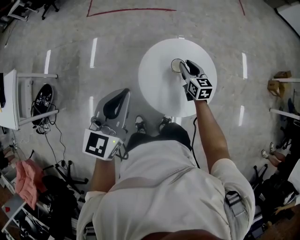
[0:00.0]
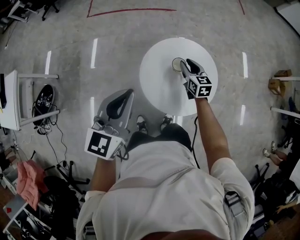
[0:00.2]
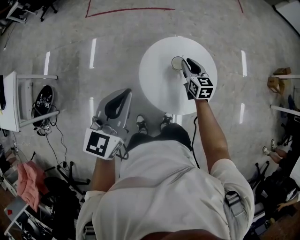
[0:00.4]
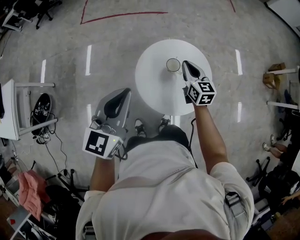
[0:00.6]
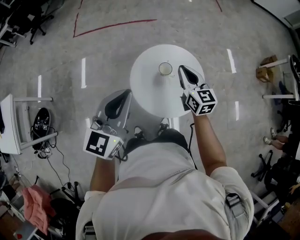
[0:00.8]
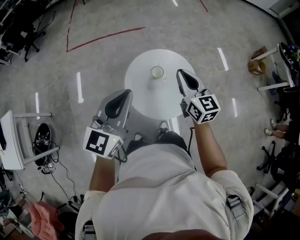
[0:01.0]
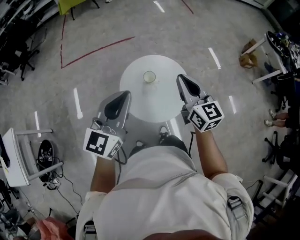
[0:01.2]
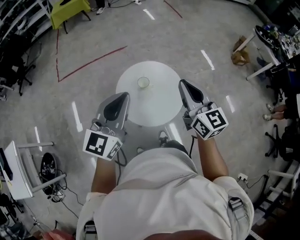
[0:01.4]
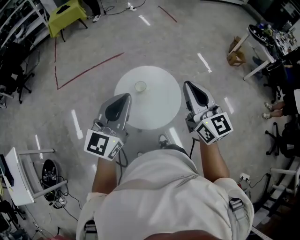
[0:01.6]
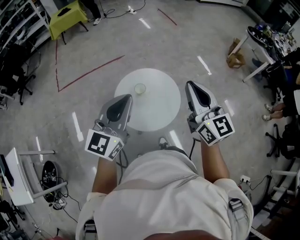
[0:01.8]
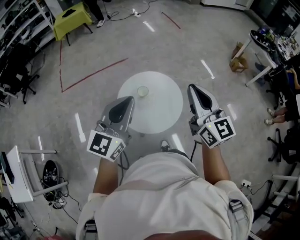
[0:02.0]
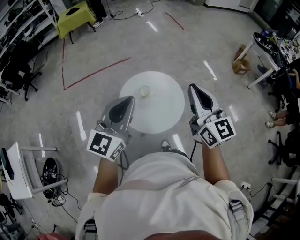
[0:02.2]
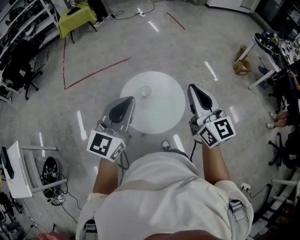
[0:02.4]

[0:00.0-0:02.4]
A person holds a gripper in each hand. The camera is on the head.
0:00.0 to 0:01.2: The right gripper heads upward and backward, covering approximately 35 cm, turns by approximately 30 degrees, and closes up; the left gripper is displaced upward by some 10 cm, and rotates approximately 30 degrees.
0:01.2 to 0:02.4: The left gripper goes approximately 10 cm to the right and upward; the right gripper travels upward, to the right and backward by approximately 15 cm.

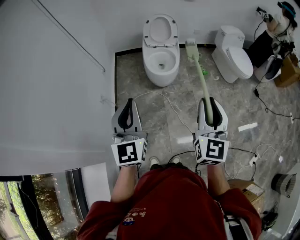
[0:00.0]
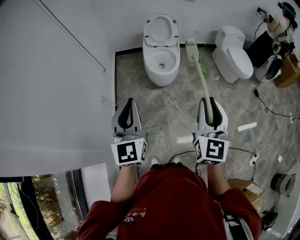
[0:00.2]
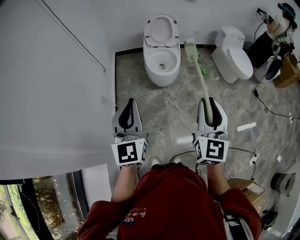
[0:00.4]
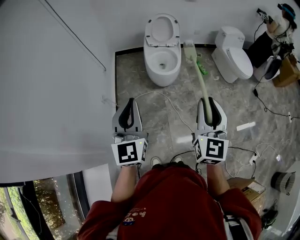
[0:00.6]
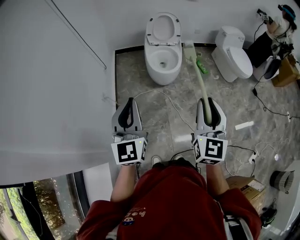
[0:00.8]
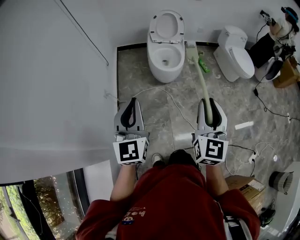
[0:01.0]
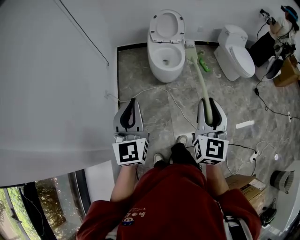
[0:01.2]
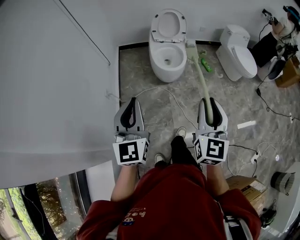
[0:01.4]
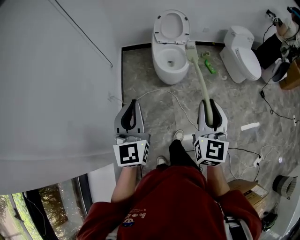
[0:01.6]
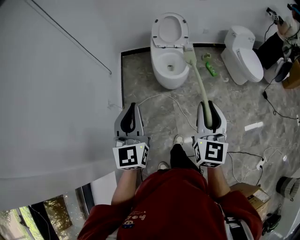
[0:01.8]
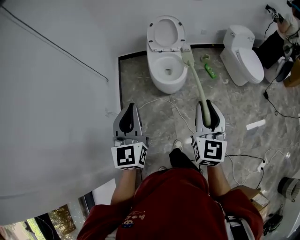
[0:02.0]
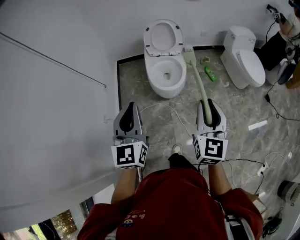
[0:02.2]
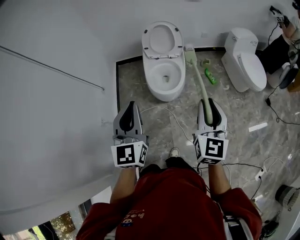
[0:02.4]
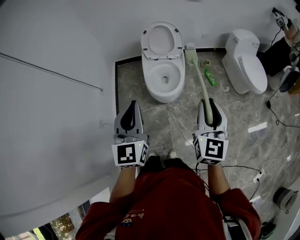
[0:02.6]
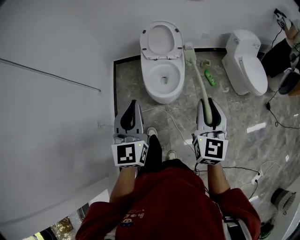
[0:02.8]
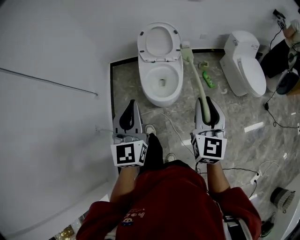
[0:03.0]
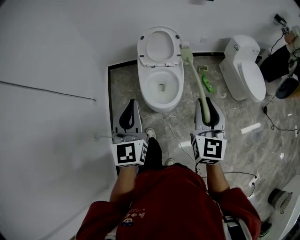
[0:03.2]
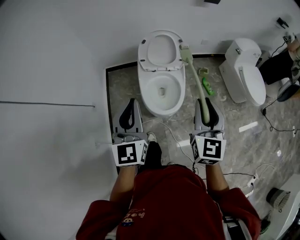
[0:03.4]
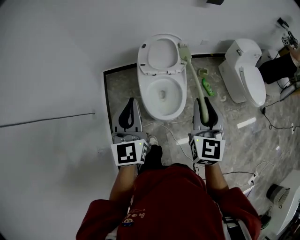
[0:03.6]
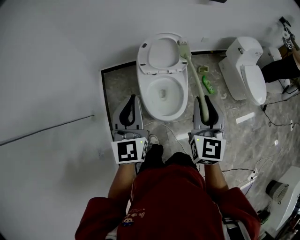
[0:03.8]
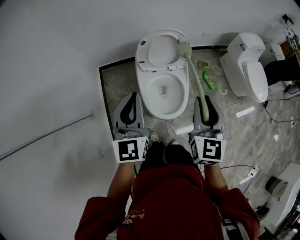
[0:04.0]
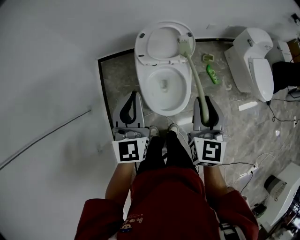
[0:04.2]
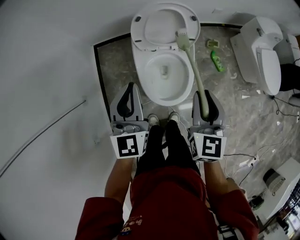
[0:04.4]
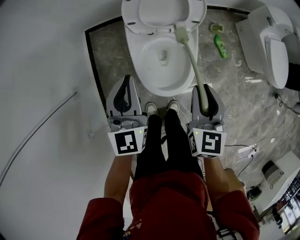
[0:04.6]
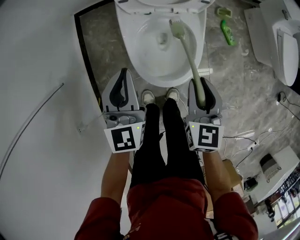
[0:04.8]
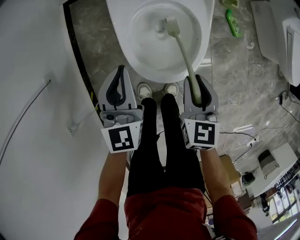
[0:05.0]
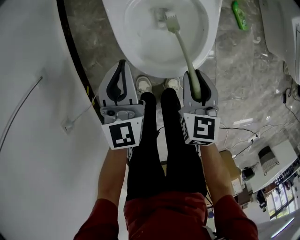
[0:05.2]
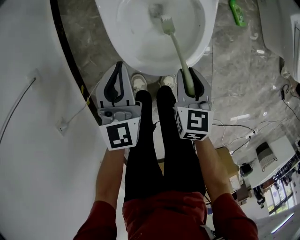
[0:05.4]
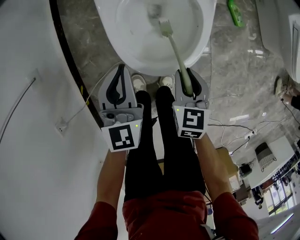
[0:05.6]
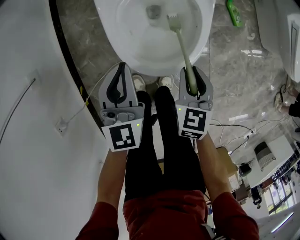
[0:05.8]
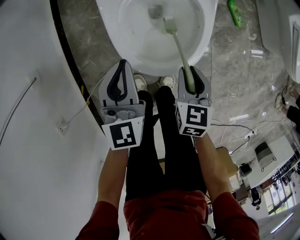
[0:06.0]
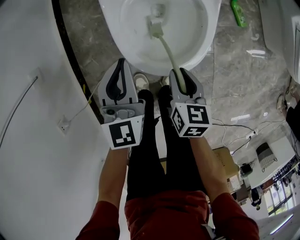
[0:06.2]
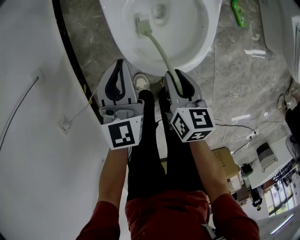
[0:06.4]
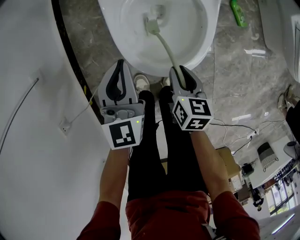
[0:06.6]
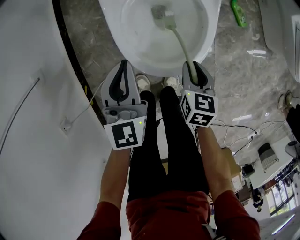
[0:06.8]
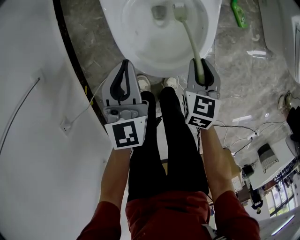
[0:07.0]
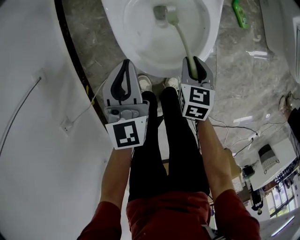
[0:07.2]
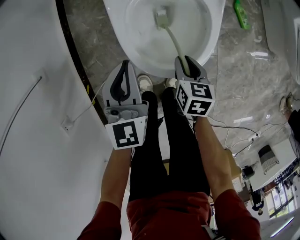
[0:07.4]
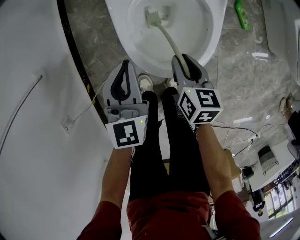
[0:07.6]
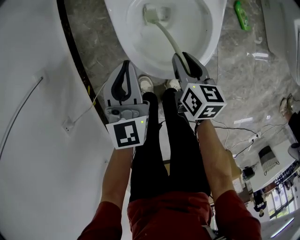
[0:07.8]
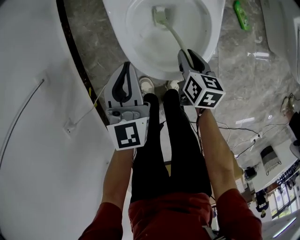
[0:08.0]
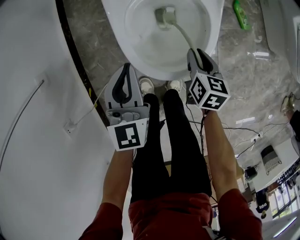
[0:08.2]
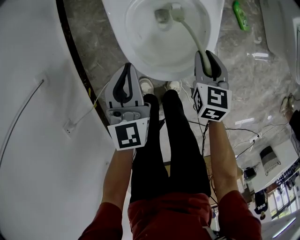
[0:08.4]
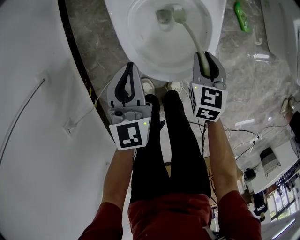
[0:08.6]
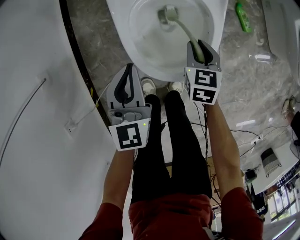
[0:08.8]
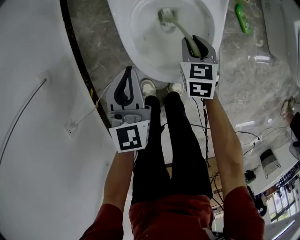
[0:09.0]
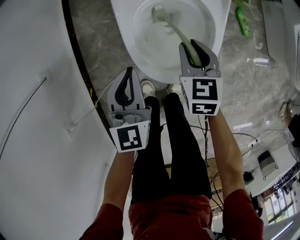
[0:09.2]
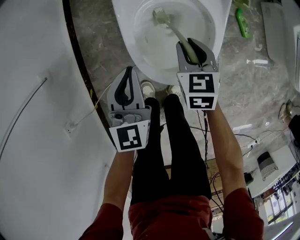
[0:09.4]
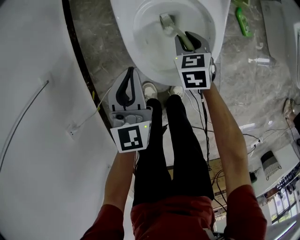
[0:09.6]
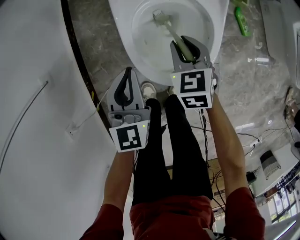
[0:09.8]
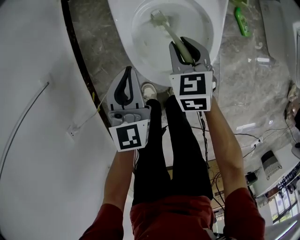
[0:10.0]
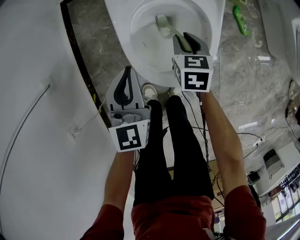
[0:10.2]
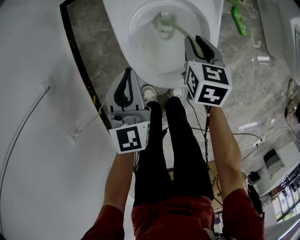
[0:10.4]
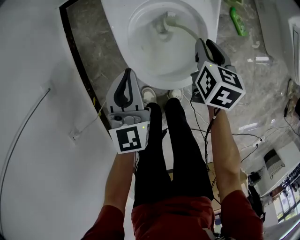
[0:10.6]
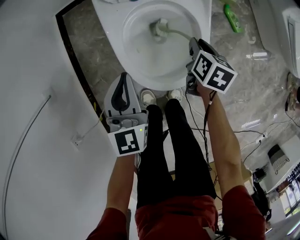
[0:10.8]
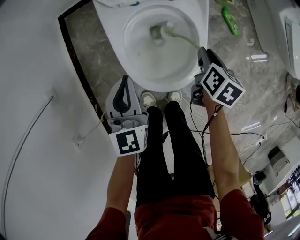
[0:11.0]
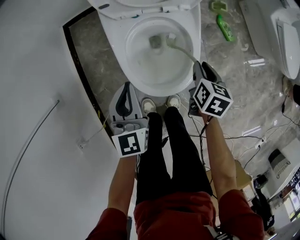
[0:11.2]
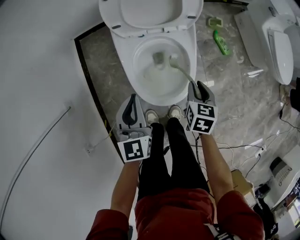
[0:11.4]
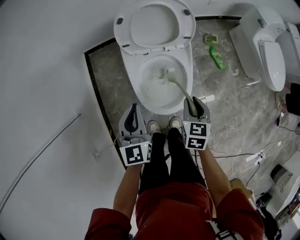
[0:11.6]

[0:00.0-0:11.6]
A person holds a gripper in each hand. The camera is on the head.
0:00.0 to 0:01.4: Both grippers move to the left, roughly 10 cm.
0:01.4 to 0:02.8: The two grippers go roughly 30 cm forward.
0:02.8 to 0:04.4: The right gripper travels forward and downward by about 35 cm, while the left gripper moves forward, some 35 cm.
0:04.4 to 0:05.8: Both grippers travel together downward, roughly 35 cm. The right gripper turns by about 30 degrees.
0:05.8 to 0:07.2: The right gripper heads downward, covering roughly 5 cm, and goes to the left and returns, approximately 5 cm each way.
0:07.2 to 0:08.8: The right gripper heads forward, covering about 5 cm, and reaches approximately 5 cm to the left, then returns.
0:10.2 to 0:11.6: The right gripper goes up and down, approximately 20 cm each way, reversing 2 times; the left gripper goes roughly 15 cm upward.

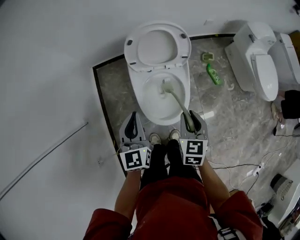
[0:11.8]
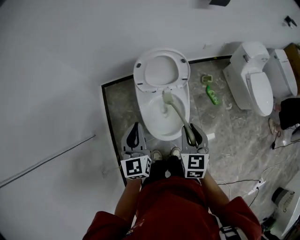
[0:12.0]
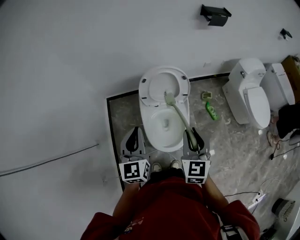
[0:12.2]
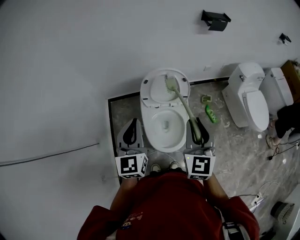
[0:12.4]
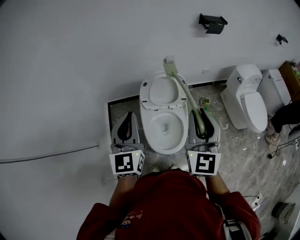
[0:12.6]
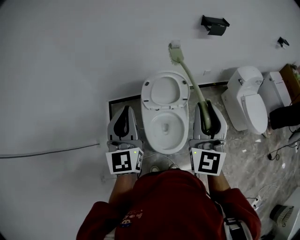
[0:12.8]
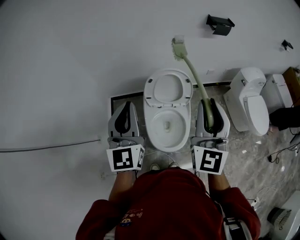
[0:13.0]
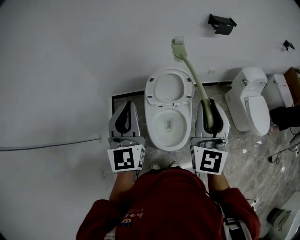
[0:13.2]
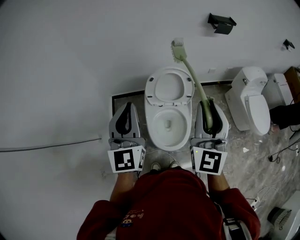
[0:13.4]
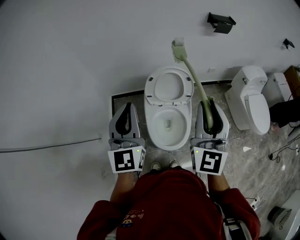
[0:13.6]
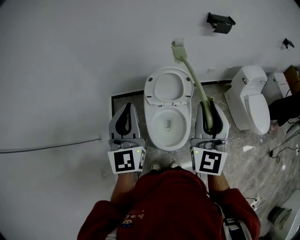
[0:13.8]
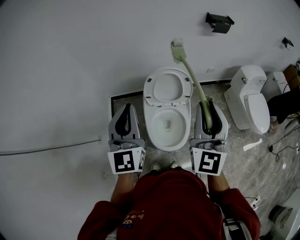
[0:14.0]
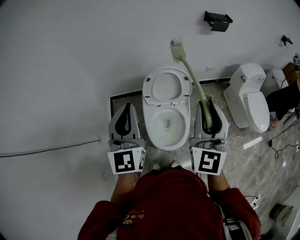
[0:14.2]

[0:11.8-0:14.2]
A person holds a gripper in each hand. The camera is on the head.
0:11.8 to 0:13.0: Both grippers move upward, some 35 cm. The right gripper tilts its fingers roughly 50 degrees upward. The left gripper turns by some 20 degrees.
0:13.0 to 0:14.2: The grippers make only small movements.

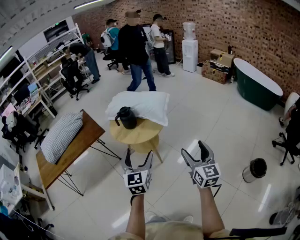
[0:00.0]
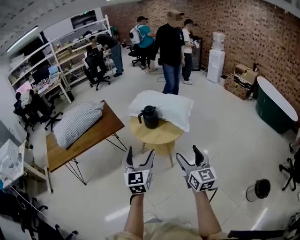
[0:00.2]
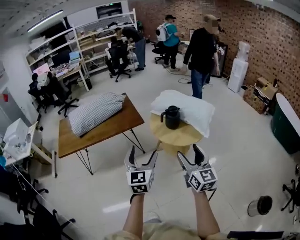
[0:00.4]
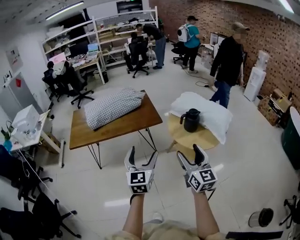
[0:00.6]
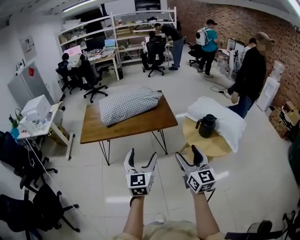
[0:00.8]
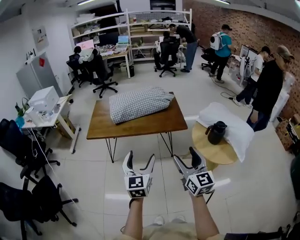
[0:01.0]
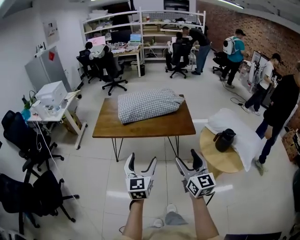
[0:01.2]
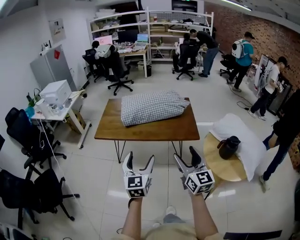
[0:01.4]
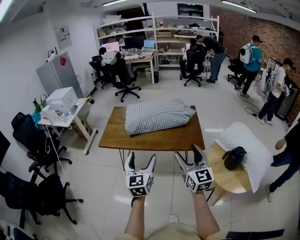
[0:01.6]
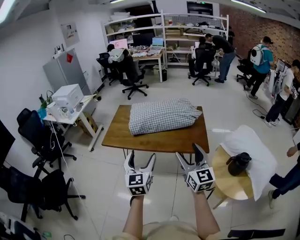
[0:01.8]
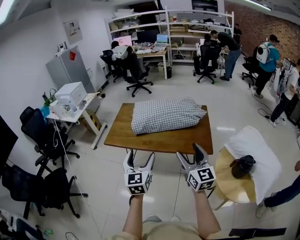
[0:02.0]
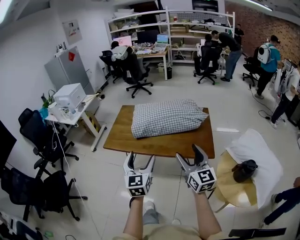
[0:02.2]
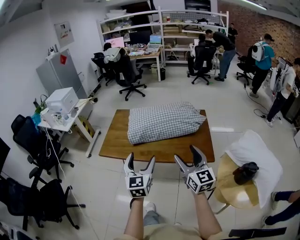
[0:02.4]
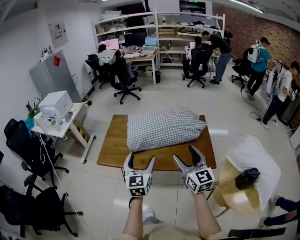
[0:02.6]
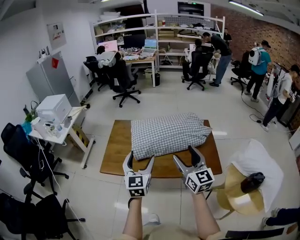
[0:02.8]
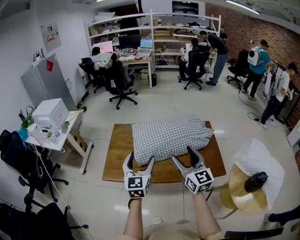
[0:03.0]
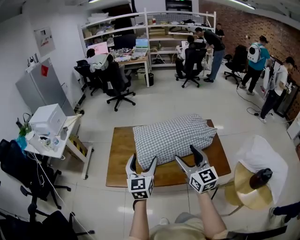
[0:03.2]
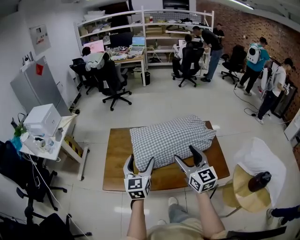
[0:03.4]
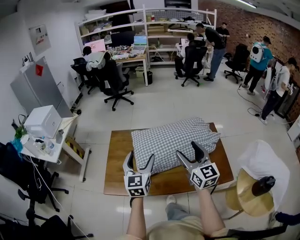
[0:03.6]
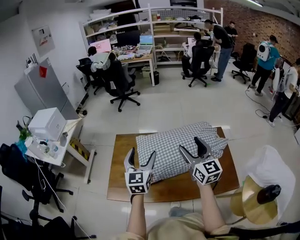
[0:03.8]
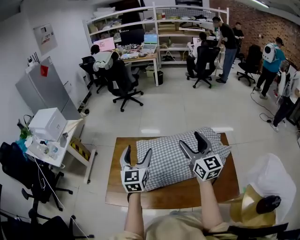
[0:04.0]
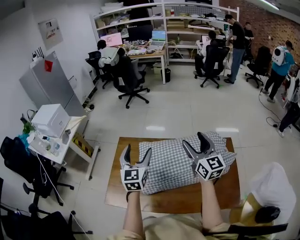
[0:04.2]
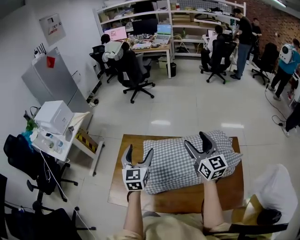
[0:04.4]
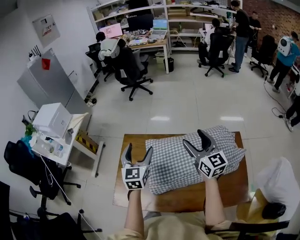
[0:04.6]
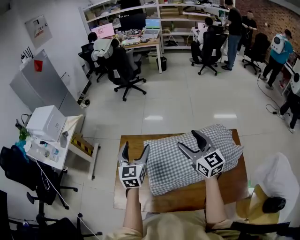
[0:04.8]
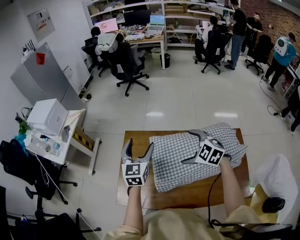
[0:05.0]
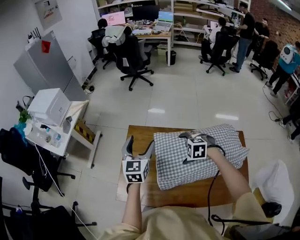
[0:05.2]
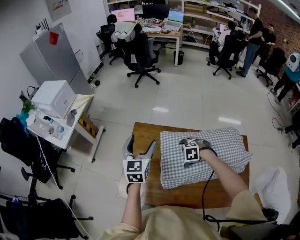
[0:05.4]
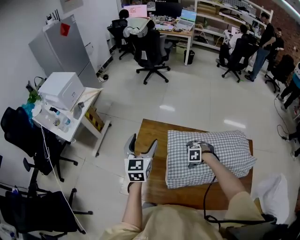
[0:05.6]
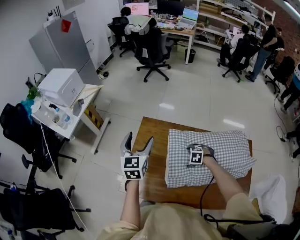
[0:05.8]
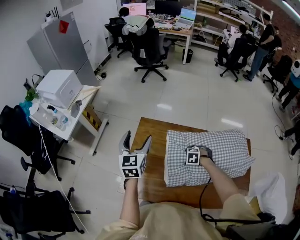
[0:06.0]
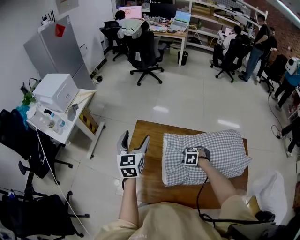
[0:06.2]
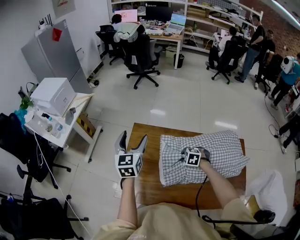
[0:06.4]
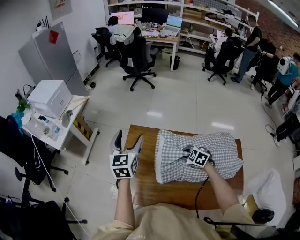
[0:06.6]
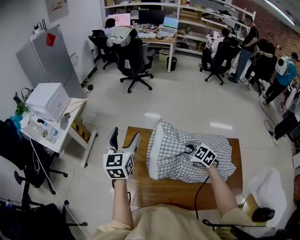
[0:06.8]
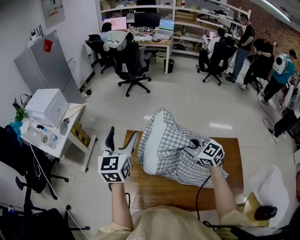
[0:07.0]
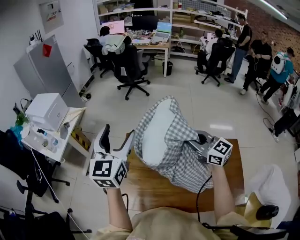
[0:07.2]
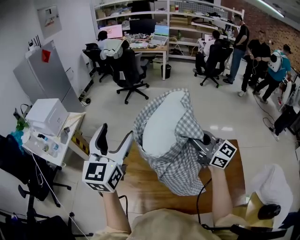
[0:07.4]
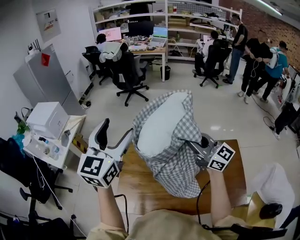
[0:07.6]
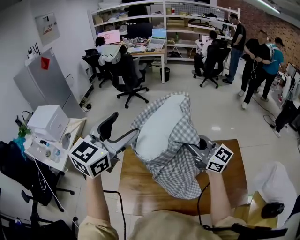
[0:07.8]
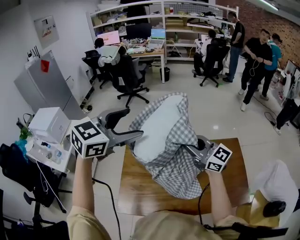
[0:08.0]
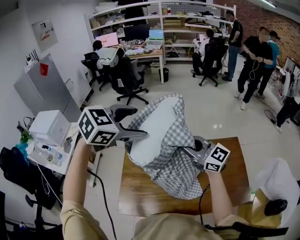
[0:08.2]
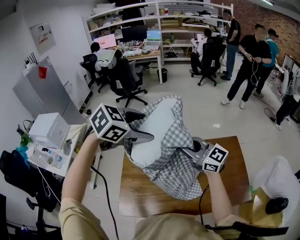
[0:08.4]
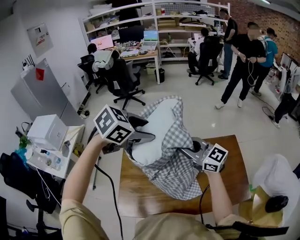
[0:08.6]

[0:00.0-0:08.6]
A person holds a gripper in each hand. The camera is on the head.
0:00.0 to 0:01.4: The right gripper changes place by about 30 cm, and turns by approximately 50 degrees; the left gripper moves about 25 cm, and rotates approximately 40 degrees.
0:01.4 to 0:02.8: The grippers both shift forward by some 40 cm.
0:02.8 to 0:04.4: Both grippers are carried forward, some 50 cm.
0:04.4 to 0:05.8: The right gripper goes roughly 40 cm downward, and tips its fingers downward by about 90 degrees, while the left gripper shifts by approximately 25 cm.
0:05.8 to 0:07.2: The left gripper heads upward, covering about 20 cm. Meanwhile the right gripper is displaced upward by about 40 cm, tilts its fingers about 80 degrees upward, and closes its fingers.
0:07.2 to 0:08.6: The left gripper reaches about 10 cm upward, then returns, and tips its fingers downward by about 60 degrees. The right gripper ends up about 10 cm from where it was.
